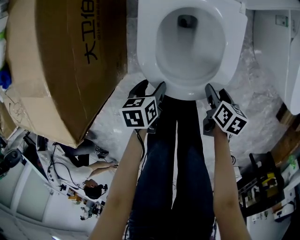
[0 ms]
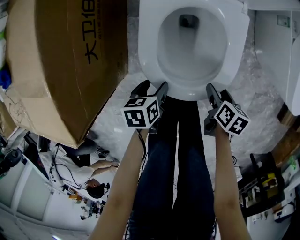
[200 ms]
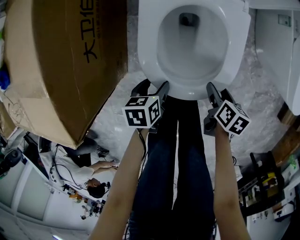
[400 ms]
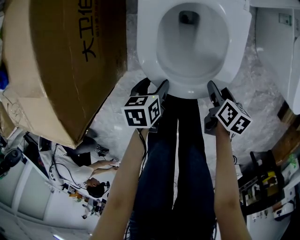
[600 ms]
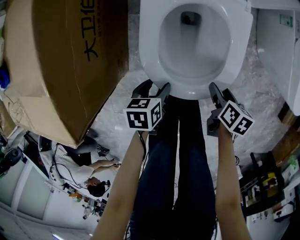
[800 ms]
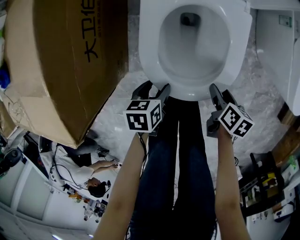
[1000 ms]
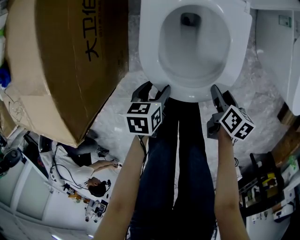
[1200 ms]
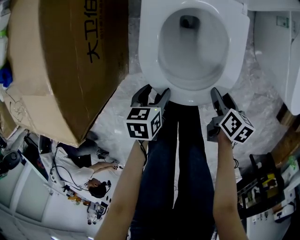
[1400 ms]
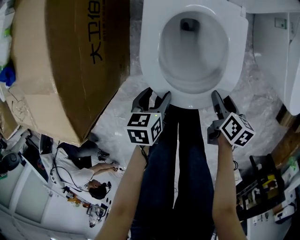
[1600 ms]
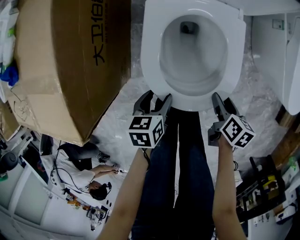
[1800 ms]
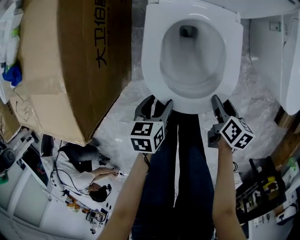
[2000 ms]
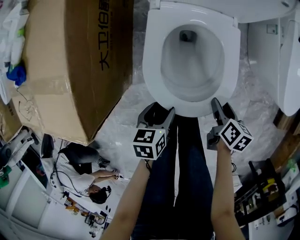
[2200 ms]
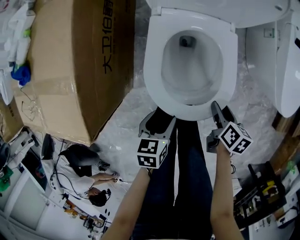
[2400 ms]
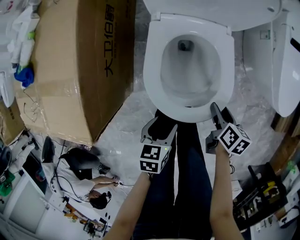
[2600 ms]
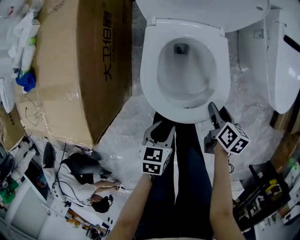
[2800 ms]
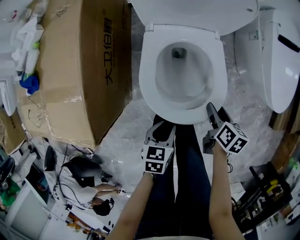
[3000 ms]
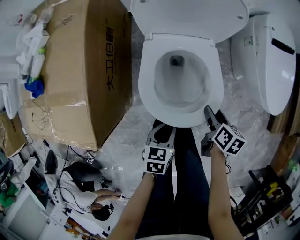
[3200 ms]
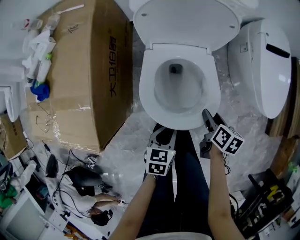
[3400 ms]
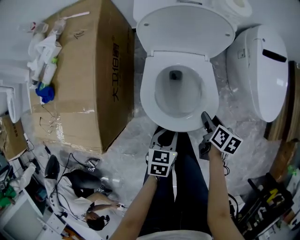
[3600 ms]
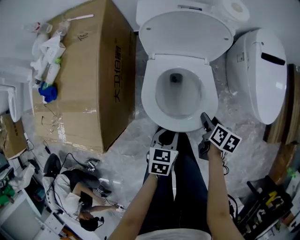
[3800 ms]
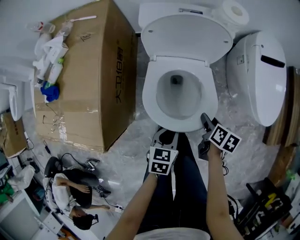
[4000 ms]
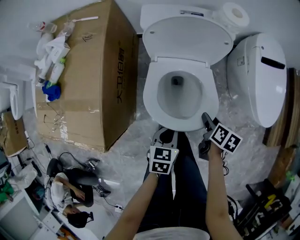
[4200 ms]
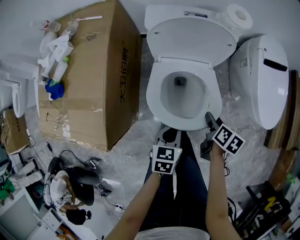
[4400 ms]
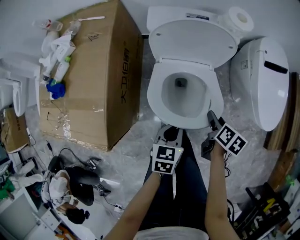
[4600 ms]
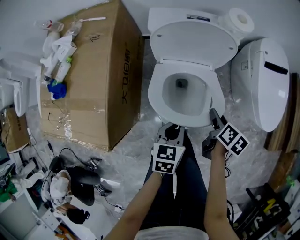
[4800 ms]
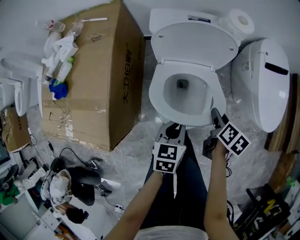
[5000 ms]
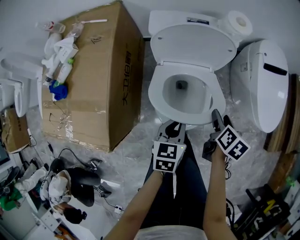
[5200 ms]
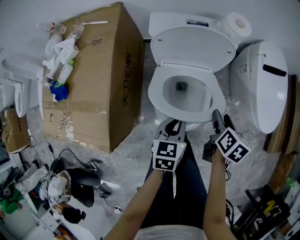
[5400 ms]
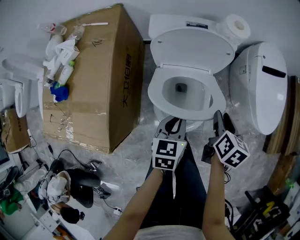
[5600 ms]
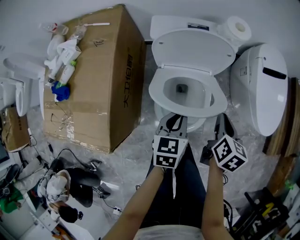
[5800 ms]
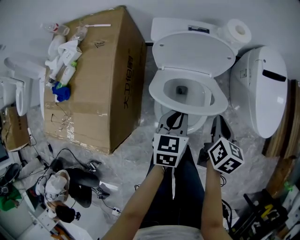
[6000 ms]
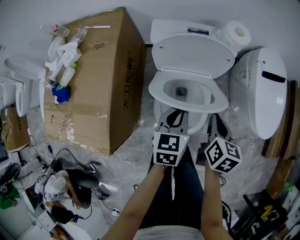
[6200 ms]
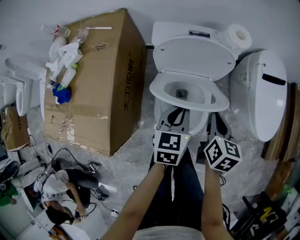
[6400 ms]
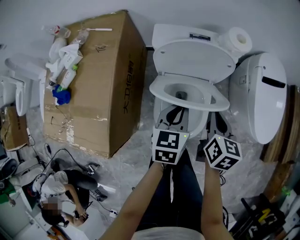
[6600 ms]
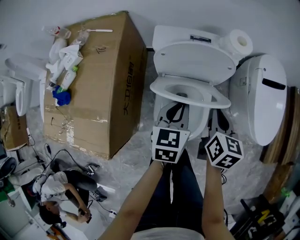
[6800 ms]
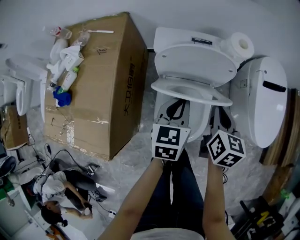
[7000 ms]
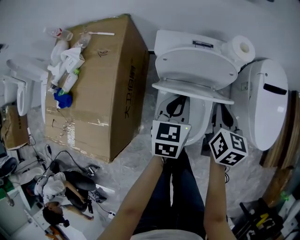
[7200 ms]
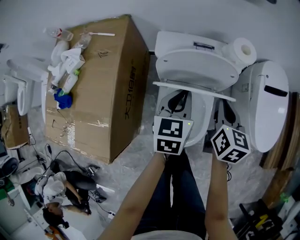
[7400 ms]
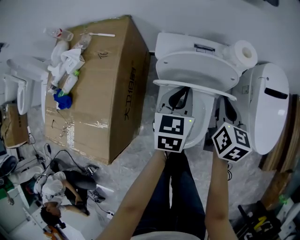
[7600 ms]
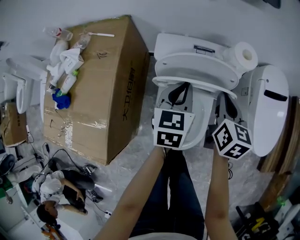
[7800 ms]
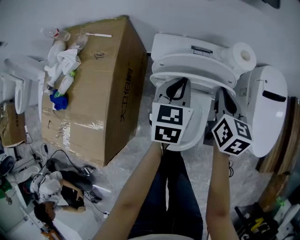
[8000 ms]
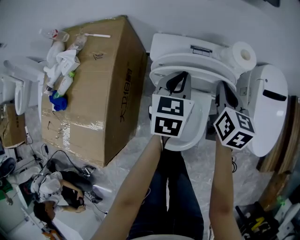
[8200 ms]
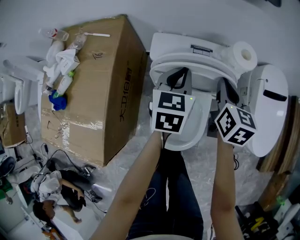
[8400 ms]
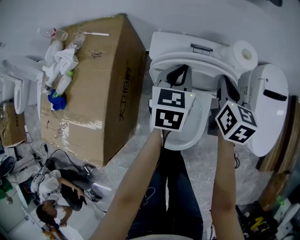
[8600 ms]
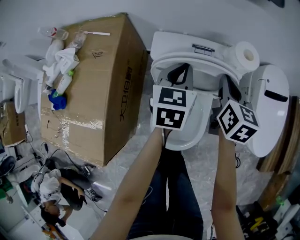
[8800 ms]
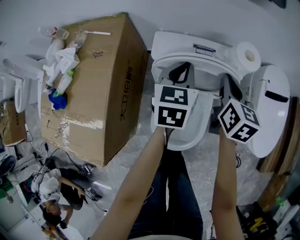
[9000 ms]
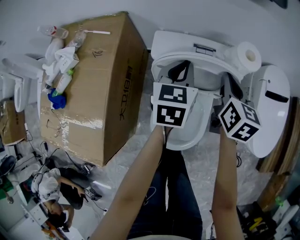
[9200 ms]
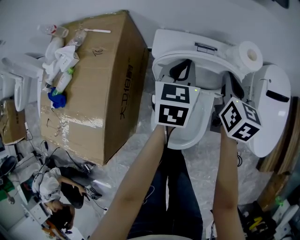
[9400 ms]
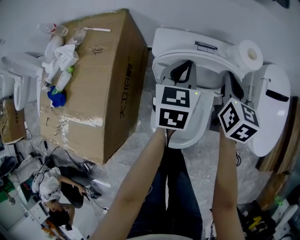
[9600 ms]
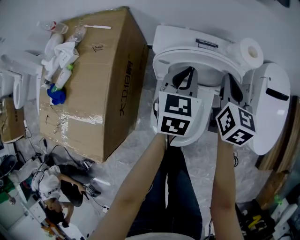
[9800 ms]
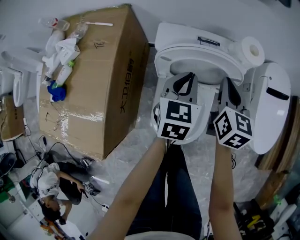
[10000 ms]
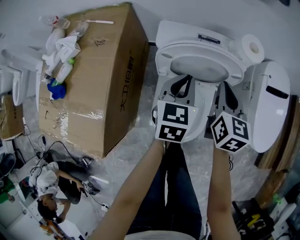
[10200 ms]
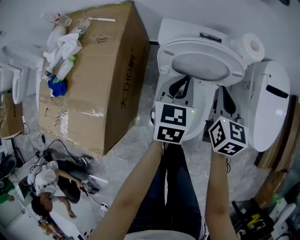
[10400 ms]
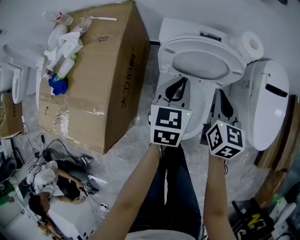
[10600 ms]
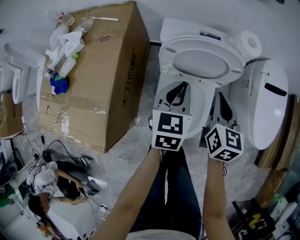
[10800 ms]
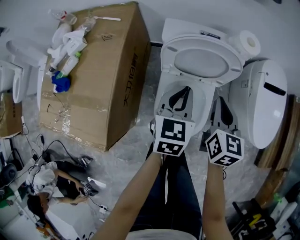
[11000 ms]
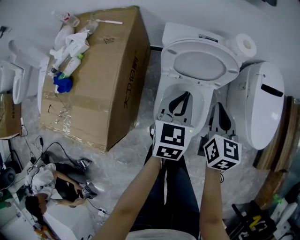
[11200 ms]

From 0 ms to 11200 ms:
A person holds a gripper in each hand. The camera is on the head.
From 0 ms to 1600 ms: The left gripper ends up roughly 5 cm from where it was.
From 1600 ms to 3200 ms: The right gripper goes approximately 15 cm upward; the left gripper is displaced upward and to the right by some 15 cm, and closes.
From 3200 ms to 4800 ms: The grippers both shift upward and forward by roughly 15 cm.
From 4800 ms to 6400 ms: The right gripper goes some 10 cm upward and to the left, changes its angle by about 30 degrees, and closes up. Meanwhile the left gripper heads forward and upward, covering some 15 cm.
From 6400 ms to 8000 ms: Both grippers move forward, about 15 cm.
From 8000 ms to 9600 ms: The grippers stay close to where they were, moving slightly.
From 9600 ms to 11200 ms: Both grippers travel together backward, approximately 20 cm.

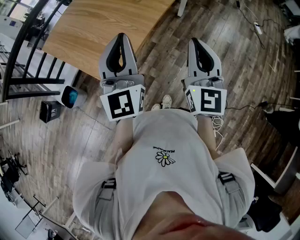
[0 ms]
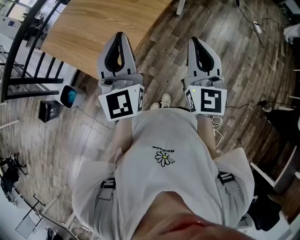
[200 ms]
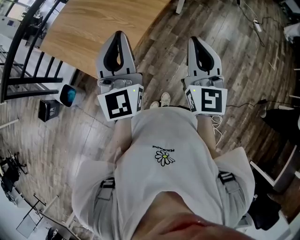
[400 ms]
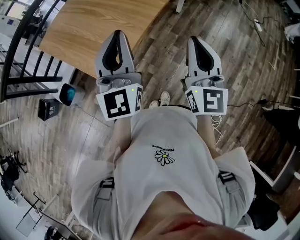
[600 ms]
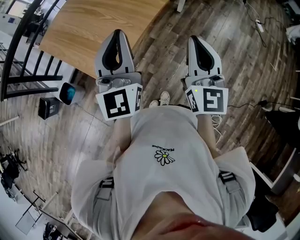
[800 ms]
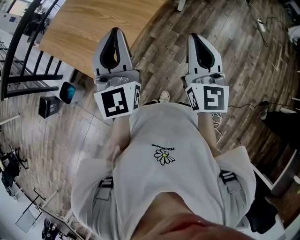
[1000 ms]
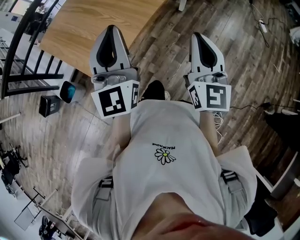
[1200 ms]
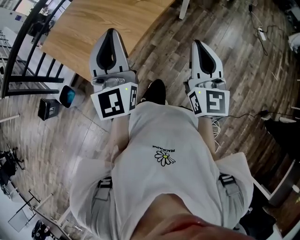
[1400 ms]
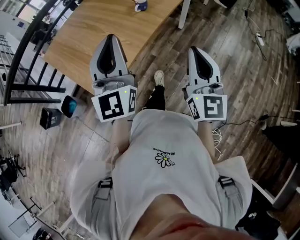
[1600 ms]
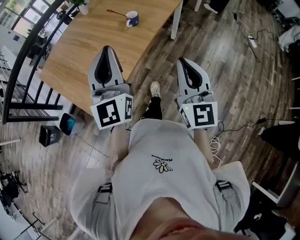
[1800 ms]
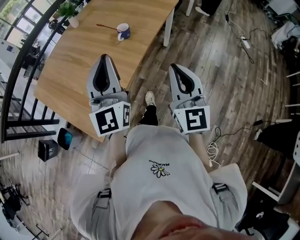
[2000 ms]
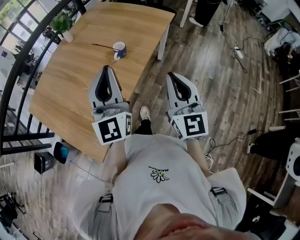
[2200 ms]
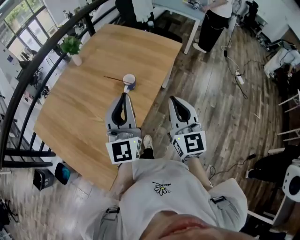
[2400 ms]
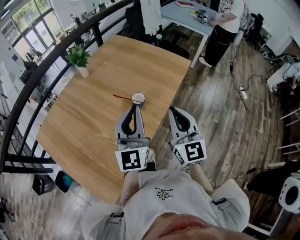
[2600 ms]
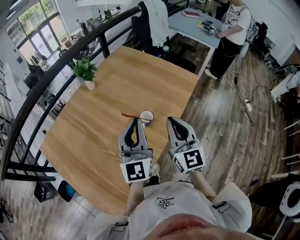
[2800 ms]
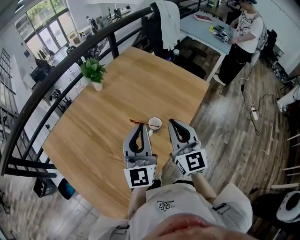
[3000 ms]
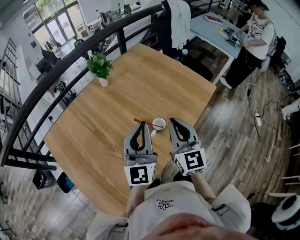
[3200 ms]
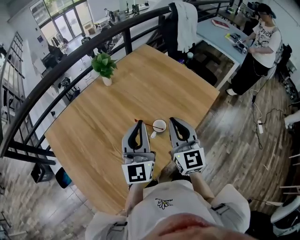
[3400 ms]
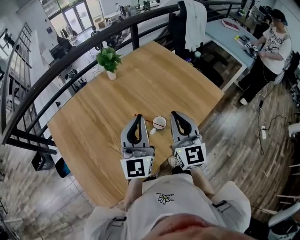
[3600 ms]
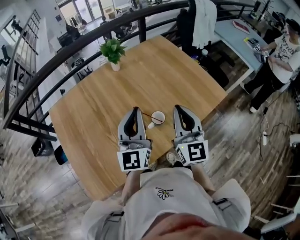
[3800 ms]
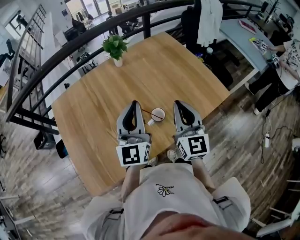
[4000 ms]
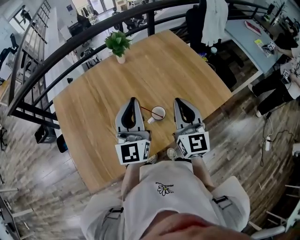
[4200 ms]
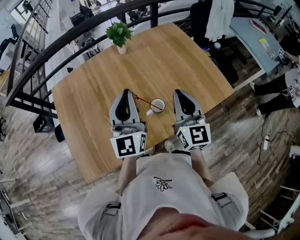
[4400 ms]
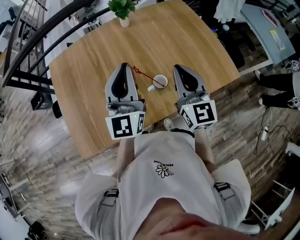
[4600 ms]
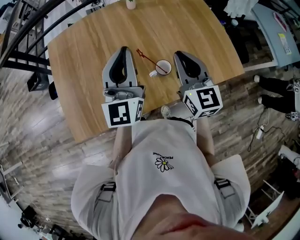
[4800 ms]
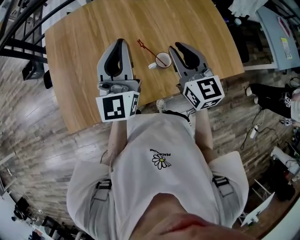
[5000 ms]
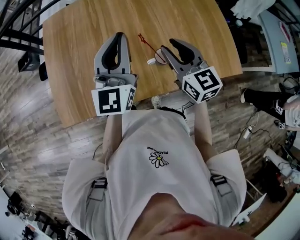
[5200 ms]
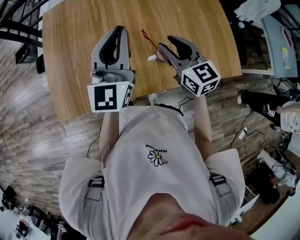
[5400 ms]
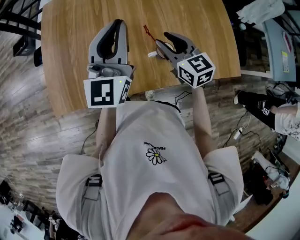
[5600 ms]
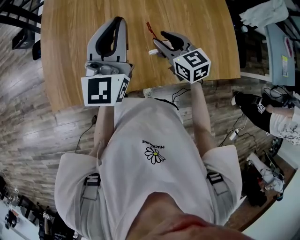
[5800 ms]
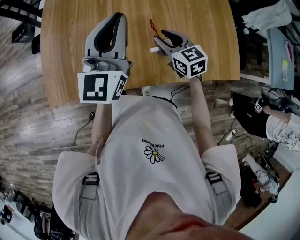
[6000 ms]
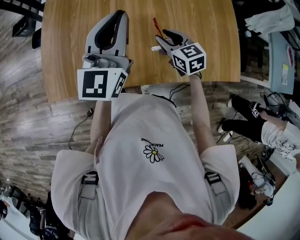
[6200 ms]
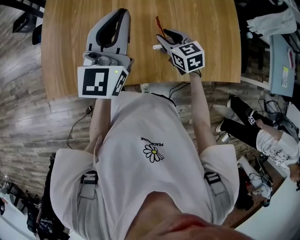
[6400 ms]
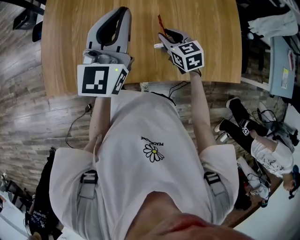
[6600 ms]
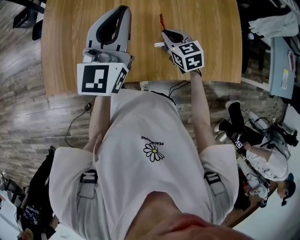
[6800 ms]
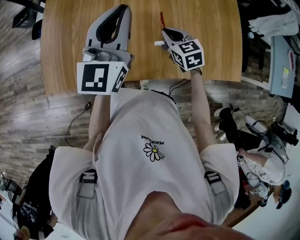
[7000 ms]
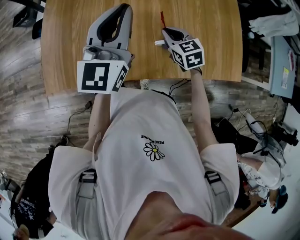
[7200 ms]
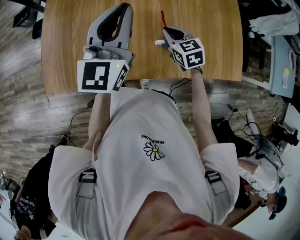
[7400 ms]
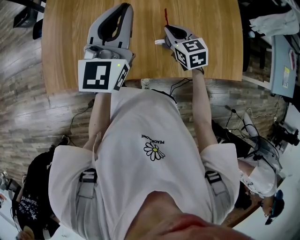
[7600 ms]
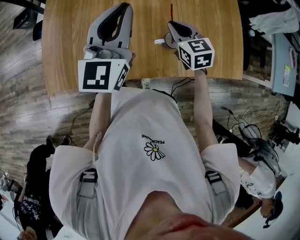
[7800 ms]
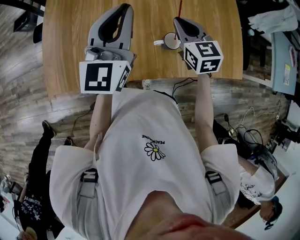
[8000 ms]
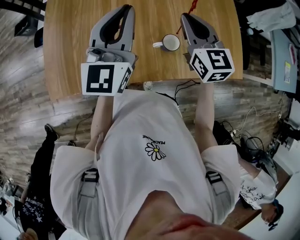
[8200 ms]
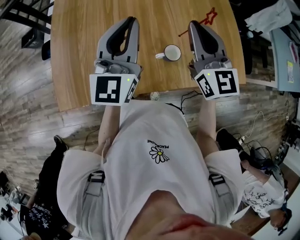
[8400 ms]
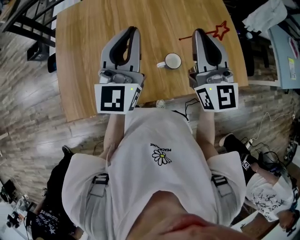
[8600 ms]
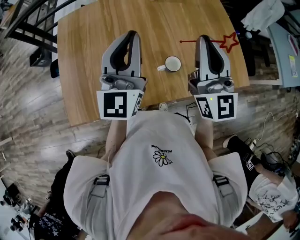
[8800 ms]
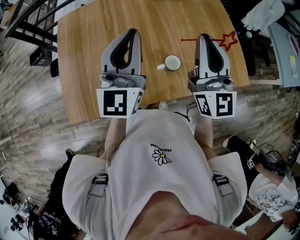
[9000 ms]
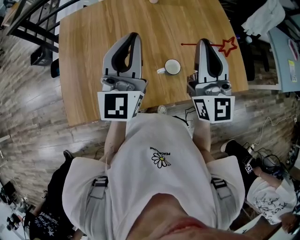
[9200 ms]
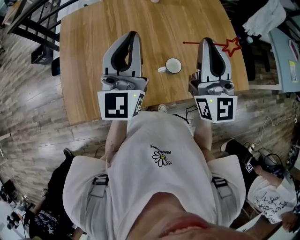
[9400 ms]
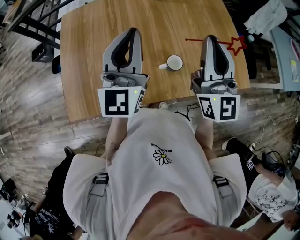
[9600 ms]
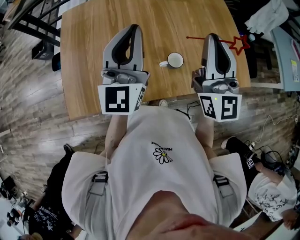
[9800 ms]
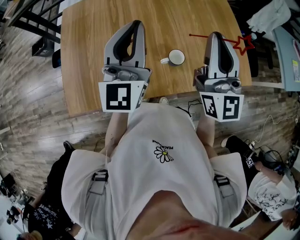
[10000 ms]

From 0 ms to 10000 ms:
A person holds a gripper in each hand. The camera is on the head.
From 0 ms to 1400 ms: The right gripper is displaced to the right by roughly 5 cm.
From 1400 ms to 2800 ms: Both grippers move forward, some 40 cm.
From 2800 ms to 4200 ms: The right gripper moves forward, roughly 10 cm, and turns by approximately 20 degrees. The left gripper is displaced forward by approximately 5 cm, and rotates some 20 degrees.
From 4200 ms to 5800 ms: The left gripper changes place by about 10 cm, while the right gripper is displaced downward by about 15 cm, angles its fingers downward, by about 30 degrees, and opens its fingers.
From 5800 ms to 7200 ms: The right gripper goes roughly 10 cm downward, and closes its fingers.
From 7200 ms to 8600 ms: The left gripper moves upward, about 5 cm. Meanwhile the right gripper heads upward, covering about 30 cm, and tilts its fingers some 50 degrees upward.
From 8600 ms to 10000 ms: The right gripper ends up roughly 5 cm from where it was.

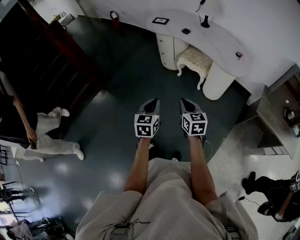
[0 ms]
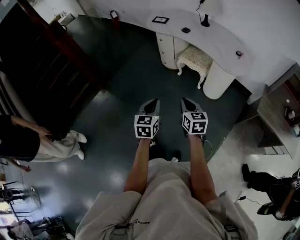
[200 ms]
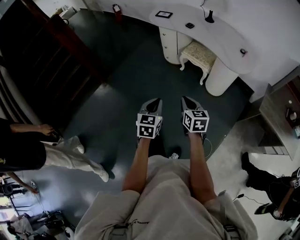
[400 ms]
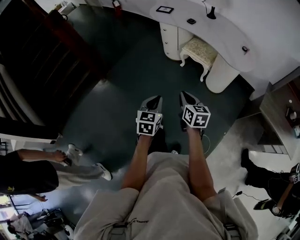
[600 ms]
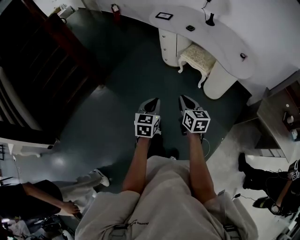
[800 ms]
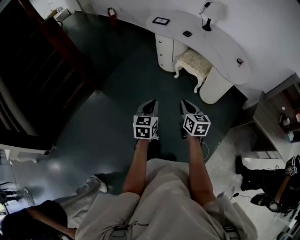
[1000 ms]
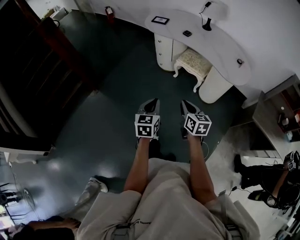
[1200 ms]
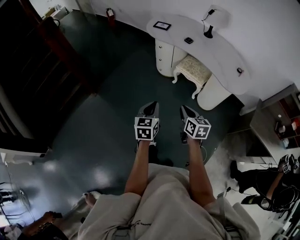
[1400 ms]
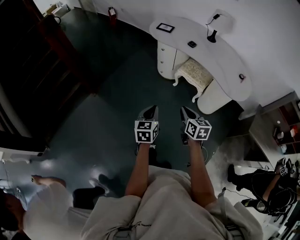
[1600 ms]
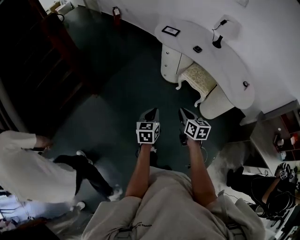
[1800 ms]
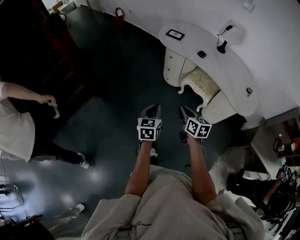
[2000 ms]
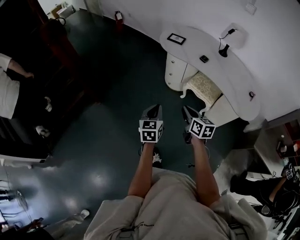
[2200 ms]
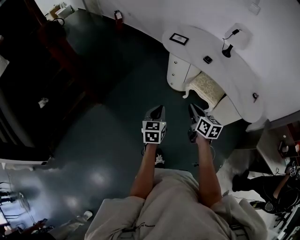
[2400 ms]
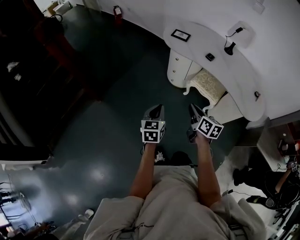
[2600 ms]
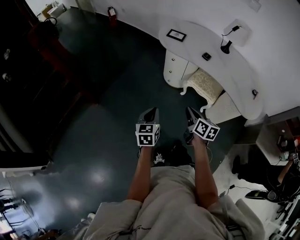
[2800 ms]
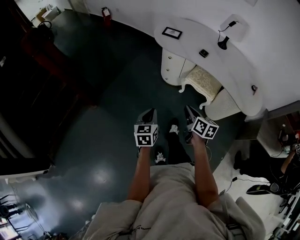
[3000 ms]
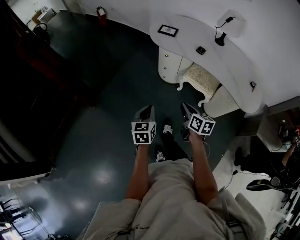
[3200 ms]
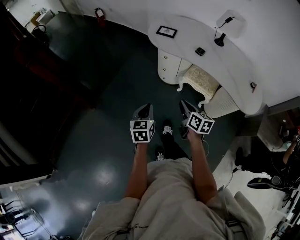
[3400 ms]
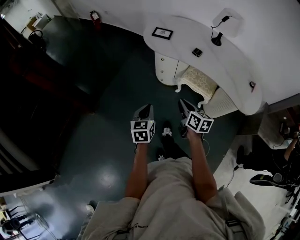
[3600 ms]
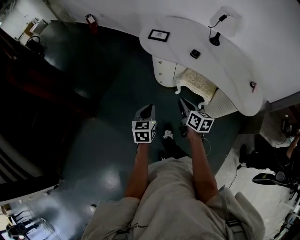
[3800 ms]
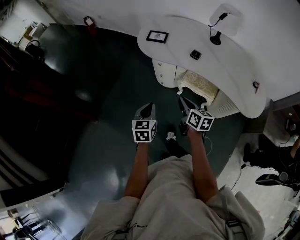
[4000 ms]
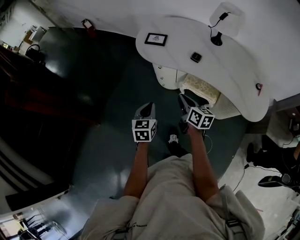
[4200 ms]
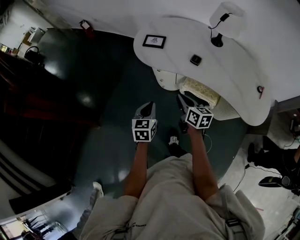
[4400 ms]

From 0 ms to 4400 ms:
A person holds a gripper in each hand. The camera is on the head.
From 0 ms to 1400 ms: Both grippers move forward, roughly 10 cm.
From 1400 ms to 3000 ms: The right gripper goes some 25 cm forward; the left gripper goes about 25 cm forward and to the left.
From 3000 ms to 4400 ms: The two grippers go roughly 25 cm forward.
